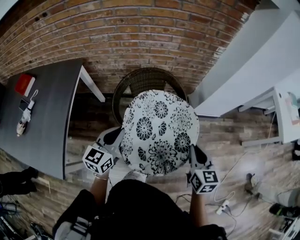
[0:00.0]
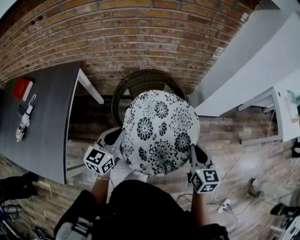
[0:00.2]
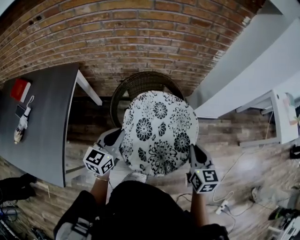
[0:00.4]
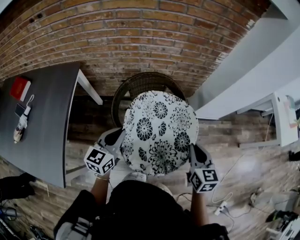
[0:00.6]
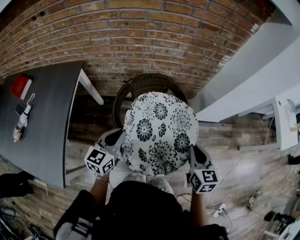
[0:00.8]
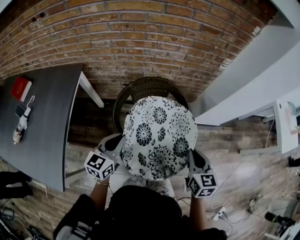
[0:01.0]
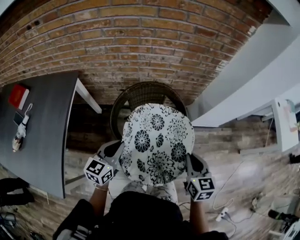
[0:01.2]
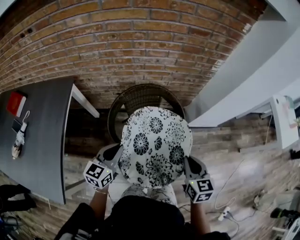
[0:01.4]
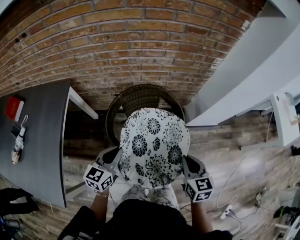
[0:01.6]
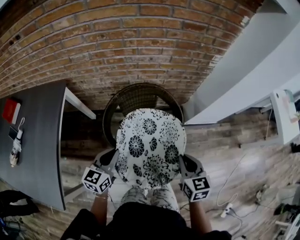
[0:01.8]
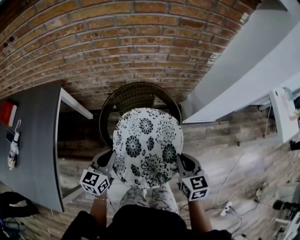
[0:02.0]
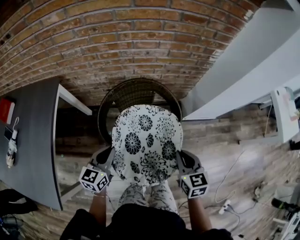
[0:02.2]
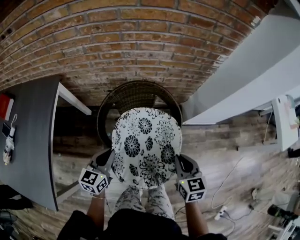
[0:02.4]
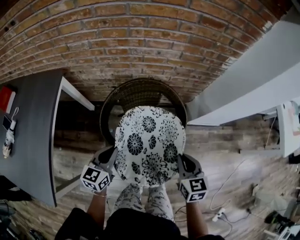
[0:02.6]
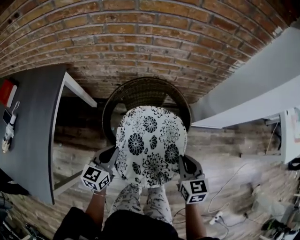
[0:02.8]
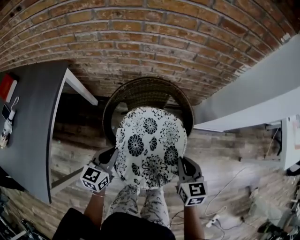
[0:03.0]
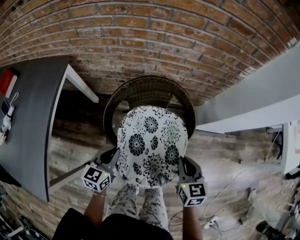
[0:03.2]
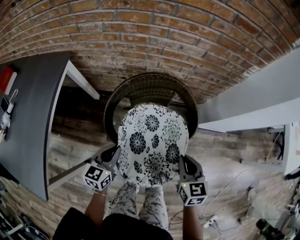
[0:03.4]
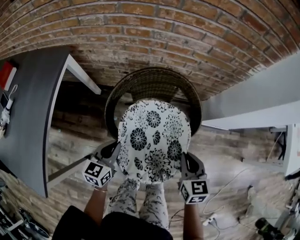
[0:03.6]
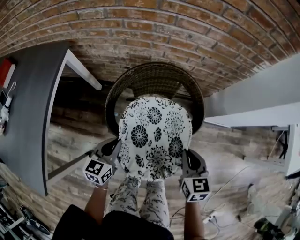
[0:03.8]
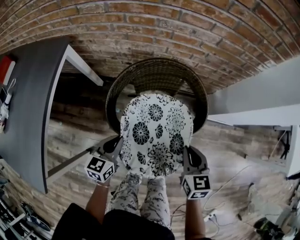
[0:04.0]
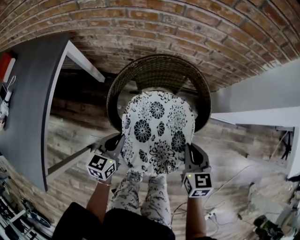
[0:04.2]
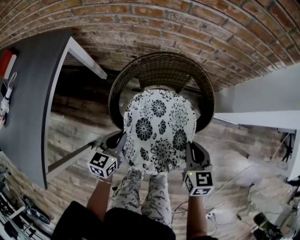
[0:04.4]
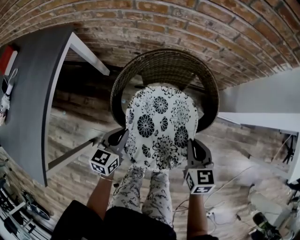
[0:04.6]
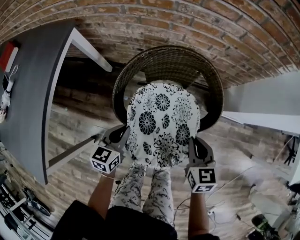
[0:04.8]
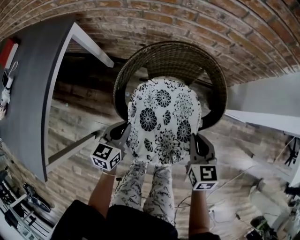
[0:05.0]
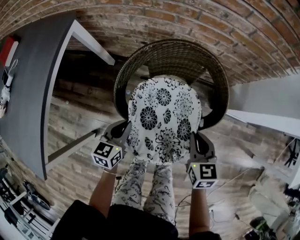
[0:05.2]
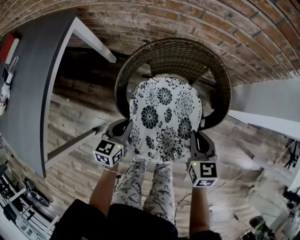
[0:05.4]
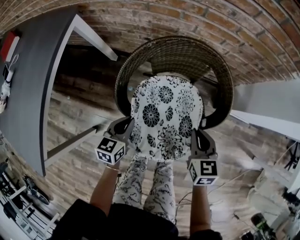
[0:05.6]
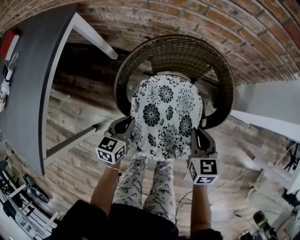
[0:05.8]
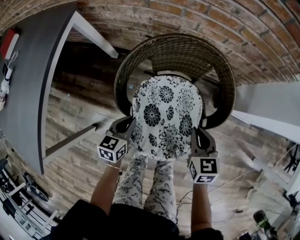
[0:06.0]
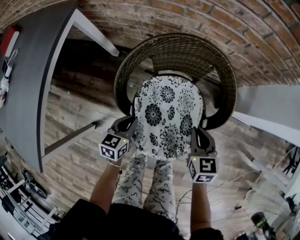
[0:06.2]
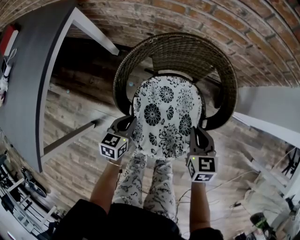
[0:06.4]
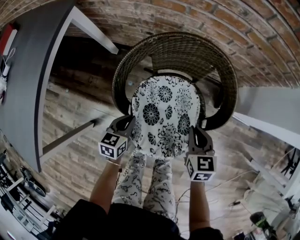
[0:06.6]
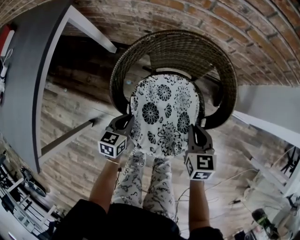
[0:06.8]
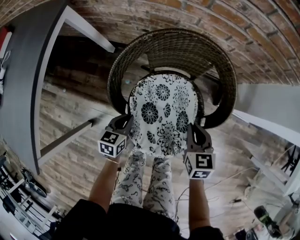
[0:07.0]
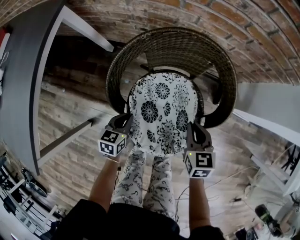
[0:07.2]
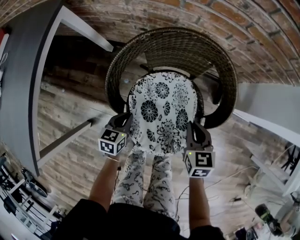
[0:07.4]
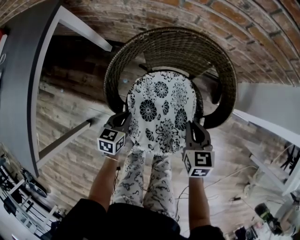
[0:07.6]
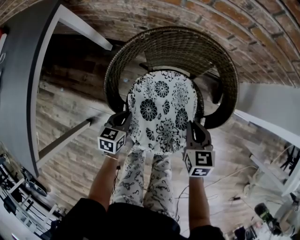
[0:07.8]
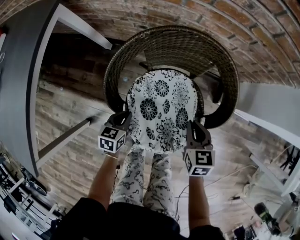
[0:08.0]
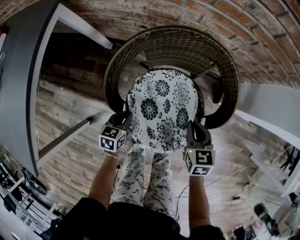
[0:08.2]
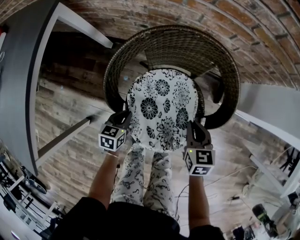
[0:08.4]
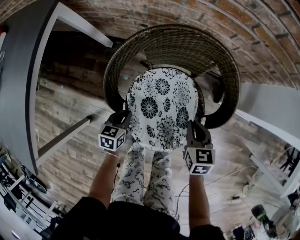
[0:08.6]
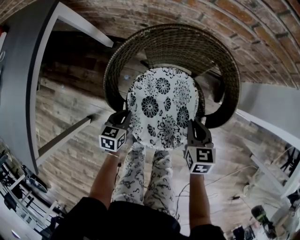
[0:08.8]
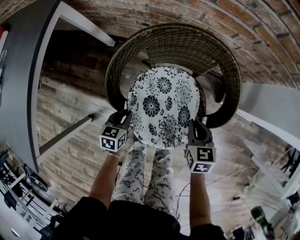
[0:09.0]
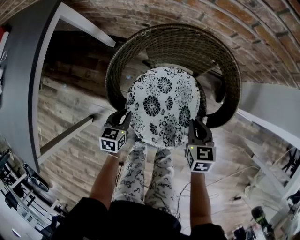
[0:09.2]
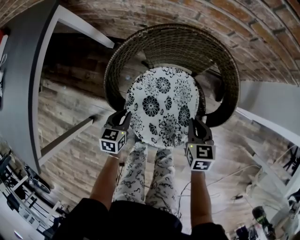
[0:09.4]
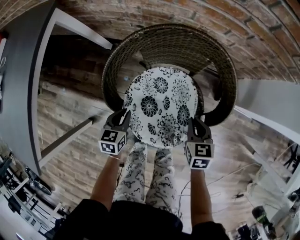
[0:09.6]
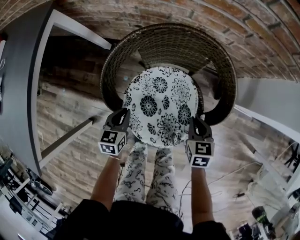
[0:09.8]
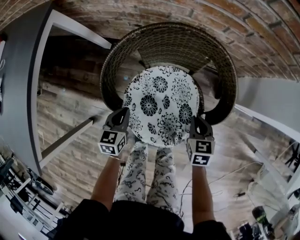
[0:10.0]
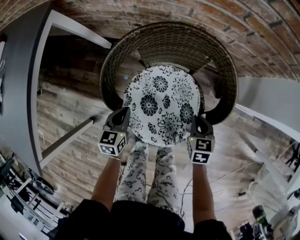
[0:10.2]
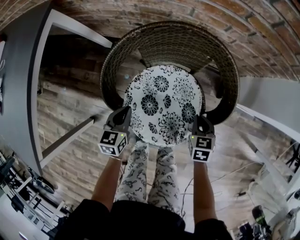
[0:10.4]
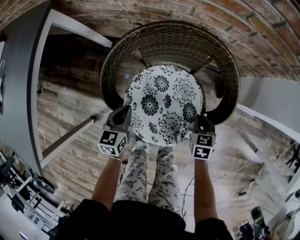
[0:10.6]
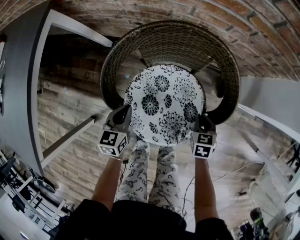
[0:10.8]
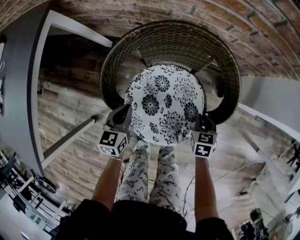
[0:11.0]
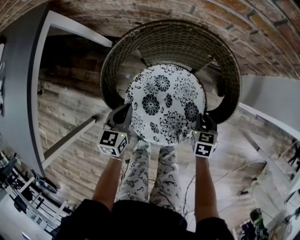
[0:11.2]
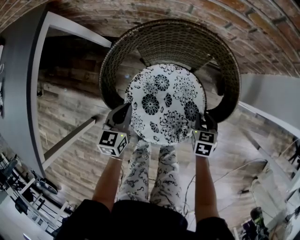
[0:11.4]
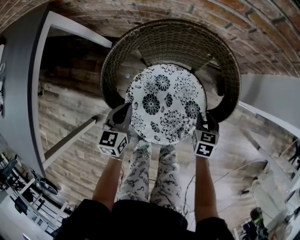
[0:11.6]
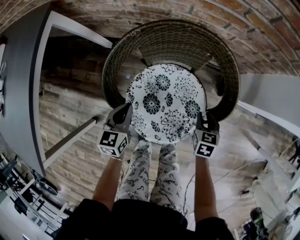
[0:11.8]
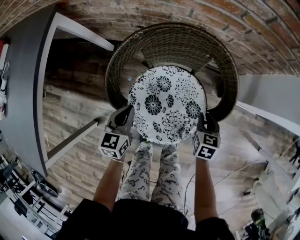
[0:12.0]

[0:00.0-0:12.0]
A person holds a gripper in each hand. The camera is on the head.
0.0 to 1.6 s: The right gripper heads forward, covering approximately 10 cm; the left gripper shifts some 10 cm forward and downward.
1.6 to 3.0 s: The left gripper heads downward, covering some 10 cm. Meanwhile the right gripper moves downward and forward, some 10 cm.
3.0 to 4.4 s: The two grippers go approximately 10 cm downward.
4.4 to 6.0 s: The two grippers go roughly 10 cm downward.
6.0 to 7.6 s: The left gripper travels downward by some 10 cm. Meanwhile the right gripper travels downward by some 5 cm.
7.6 to 9.0 s: The grippers move only a little.
9.0 to 10.4 s: The right gripper goes roughly 10 cm downward and to the right; the left gripper heads upward, covering about 5 cm.
10.4 to 12.0 s: The grippers make only small movements.

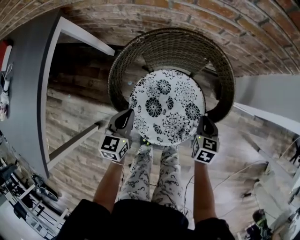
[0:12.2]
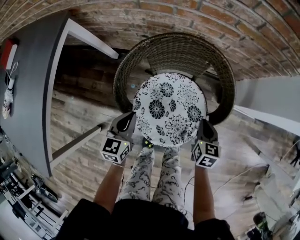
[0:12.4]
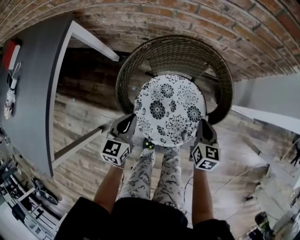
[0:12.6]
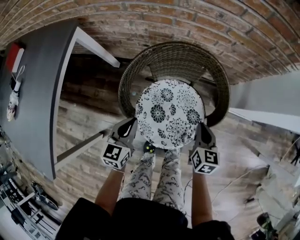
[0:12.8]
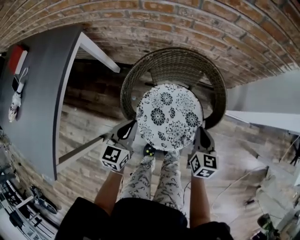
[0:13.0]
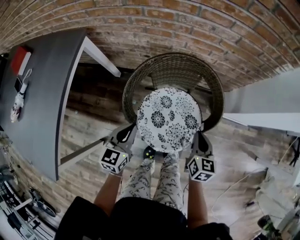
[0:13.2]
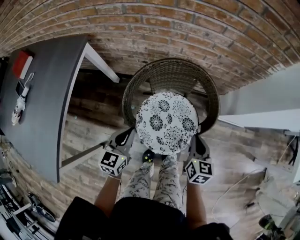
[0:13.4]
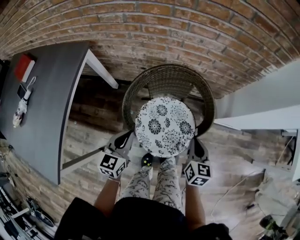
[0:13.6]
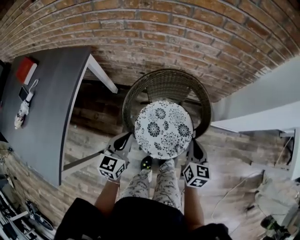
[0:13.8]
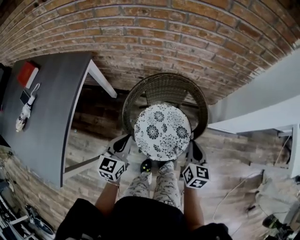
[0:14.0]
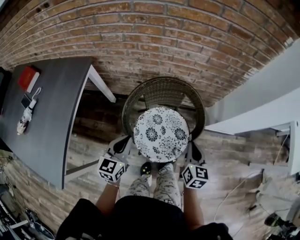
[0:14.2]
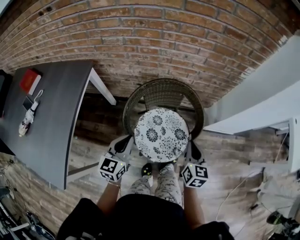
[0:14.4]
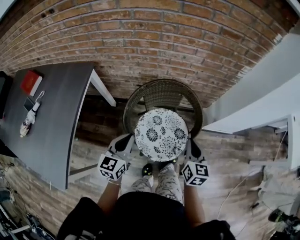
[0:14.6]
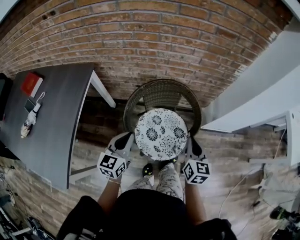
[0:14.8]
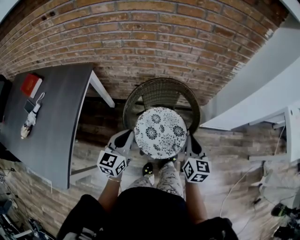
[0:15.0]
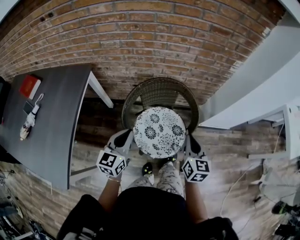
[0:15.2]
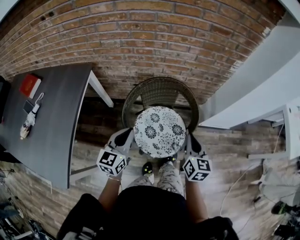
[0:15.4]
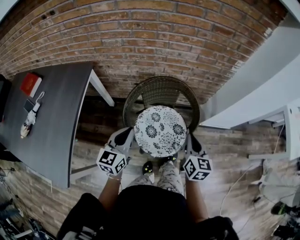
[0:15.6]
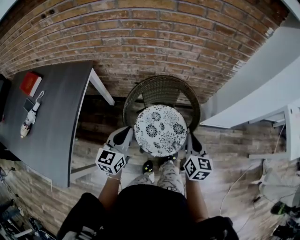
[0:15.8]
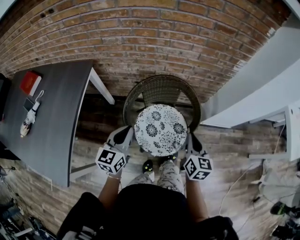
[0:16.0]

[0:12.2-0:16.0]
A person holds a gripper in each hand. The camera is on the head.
12.2 to 13.4 s: The grippers both shift upward by about 15 cm.
13.4 to 14.8 s: Both grippers travel together upward, some 15 cm.
14.8 to 16.0 s: The grippers move only a little.

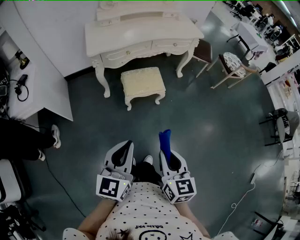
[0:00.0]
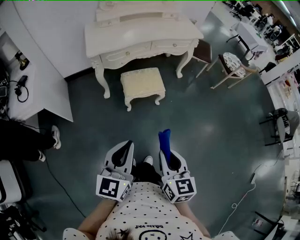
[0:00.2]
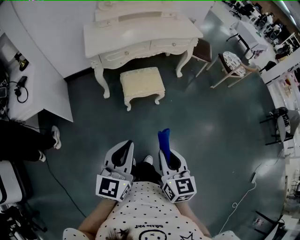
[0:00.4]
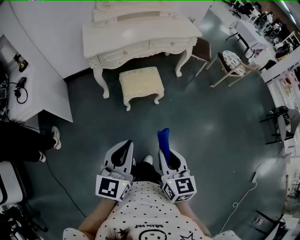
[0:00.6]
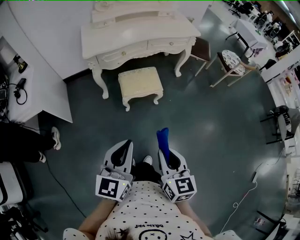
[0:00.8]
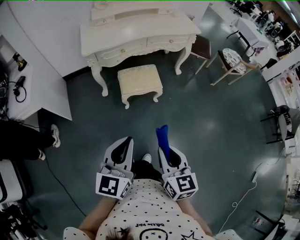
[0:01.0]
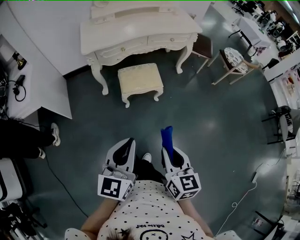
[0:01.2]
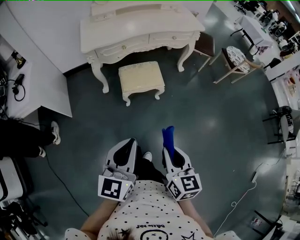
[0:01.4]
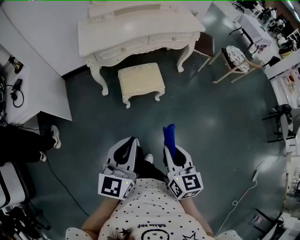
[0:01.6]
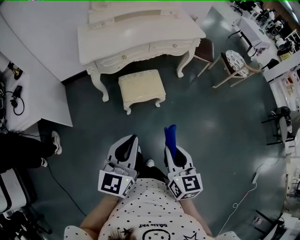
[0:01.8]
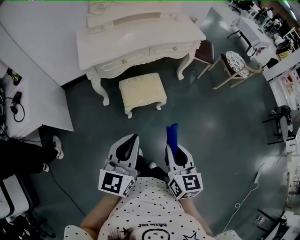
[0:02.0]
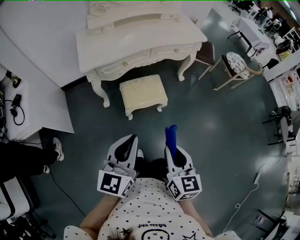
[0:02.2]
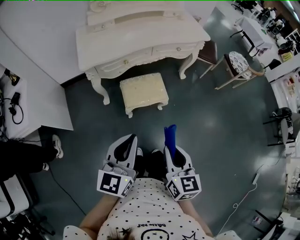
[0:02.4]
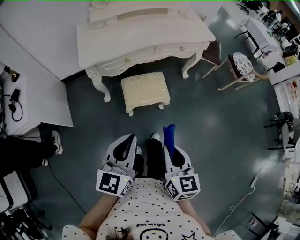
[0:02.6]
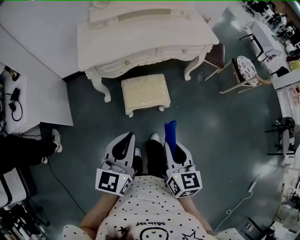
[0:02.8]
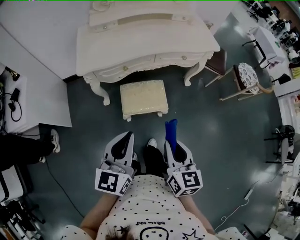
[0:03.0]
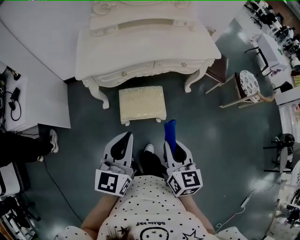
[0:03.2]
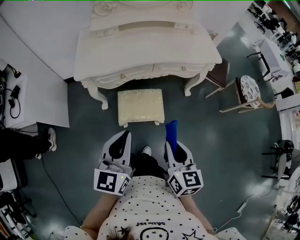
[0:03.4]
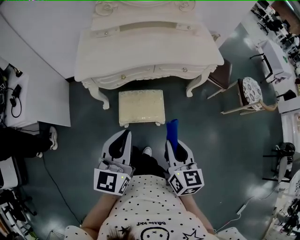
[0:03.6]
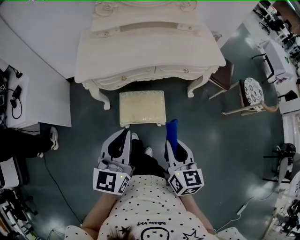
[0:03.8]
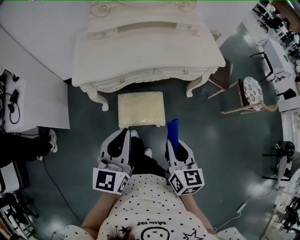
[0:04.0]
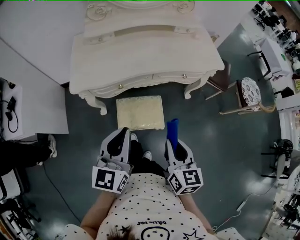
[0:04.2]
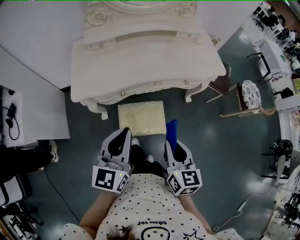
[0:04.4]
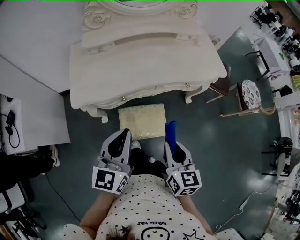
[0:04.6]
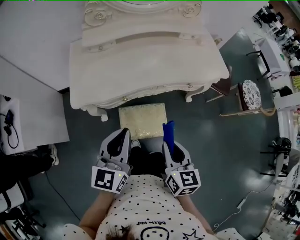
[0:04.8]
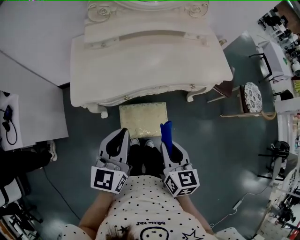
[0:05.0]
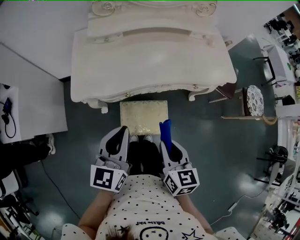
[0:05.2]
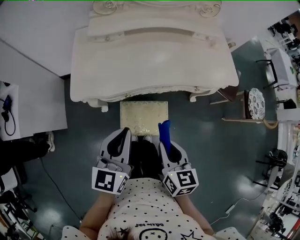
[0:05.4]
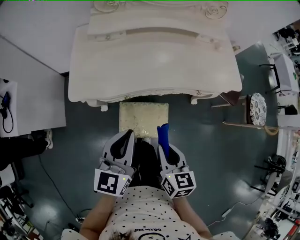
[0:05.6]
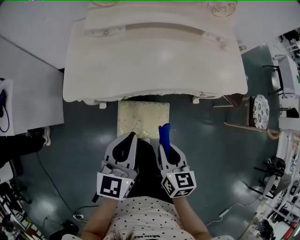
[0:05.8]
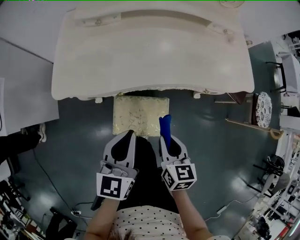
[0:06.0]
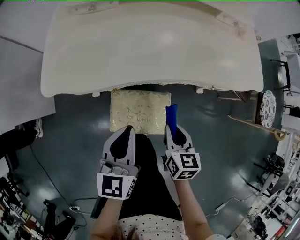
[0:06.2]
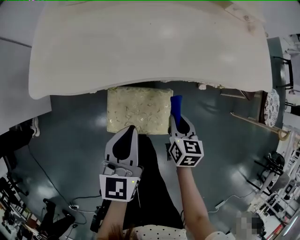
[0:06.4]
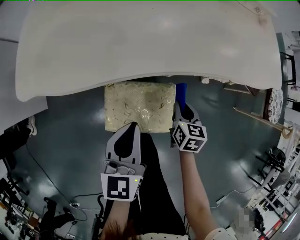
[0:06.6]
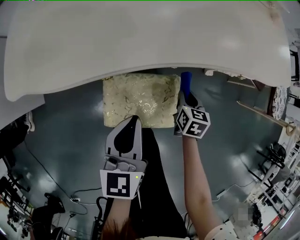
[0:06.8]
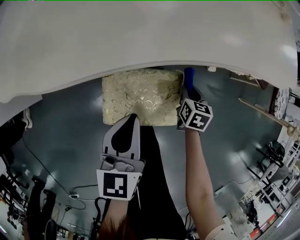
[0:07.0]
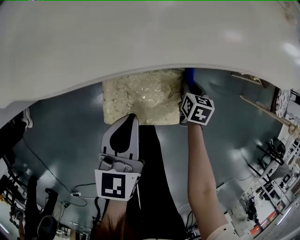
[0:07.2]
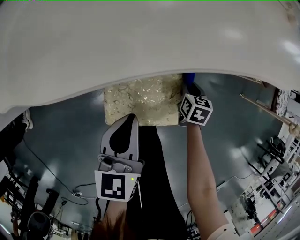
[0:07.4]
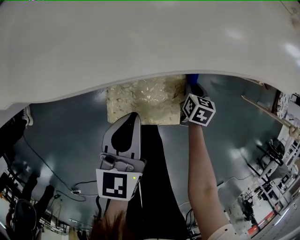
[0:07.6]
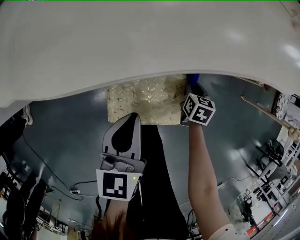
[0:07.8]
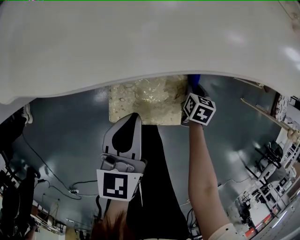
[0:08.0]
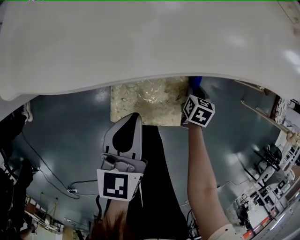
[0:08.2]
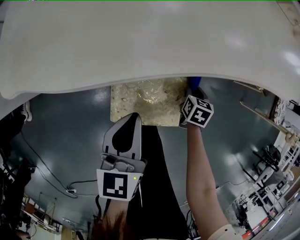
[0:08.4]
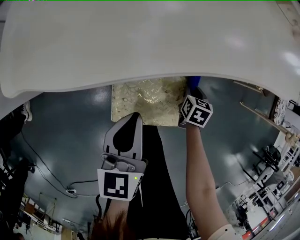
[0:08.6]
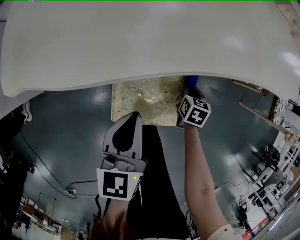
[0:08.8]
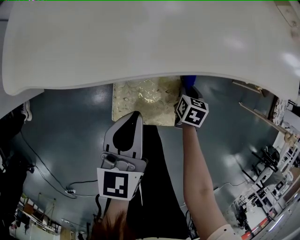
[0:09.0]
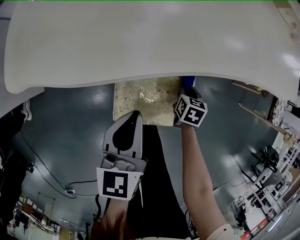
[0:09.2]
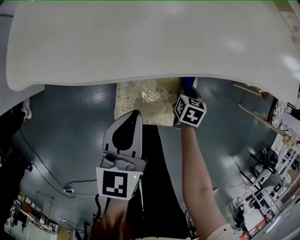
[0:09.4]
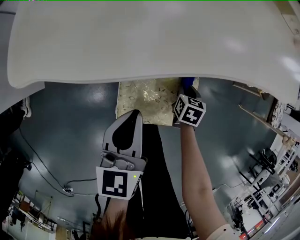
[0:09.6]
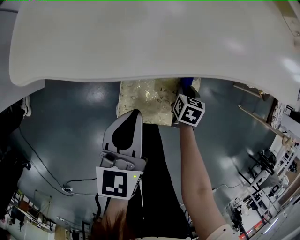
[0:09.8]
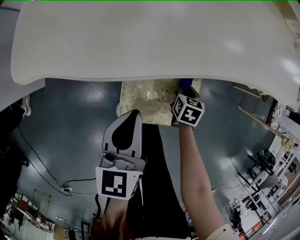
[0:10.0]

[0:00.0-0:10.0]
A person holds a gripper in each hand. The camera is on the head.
0.0 to 1.4 s: The left gripper ends up some 5 cm from where it was. Meanwhile the right gripper moves about 5 cm.
1.4 to 2.8 s: The grippers both shift forward by about 20 cm.
2.8 to 4.2 s: Both grippers move forward, roughly 20 cm.
4.2 to 5.8 s: The right gripper goes approximately 15 cm forward, downward and to the left. The left gripper shifts approximately 15 cm forward and downward.
5.8 to 7.2 s: The left gripper is displaced downward by approximately 25 cm, while the right gripper goes roughly 40 cm downward and forward, and changes its angle by approximately 20 degrees.
7.2 to 8.6 s: The grippers stay close to where they were, moving slightly.
8.6 to 10.0 s: The right gripper moves to the left, some 5 cm.
